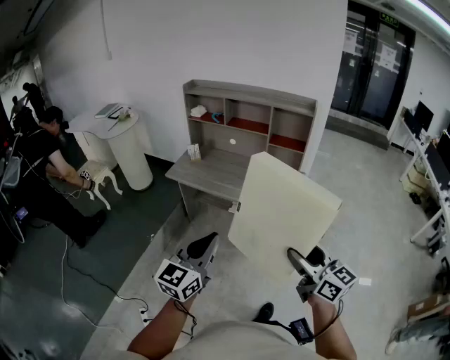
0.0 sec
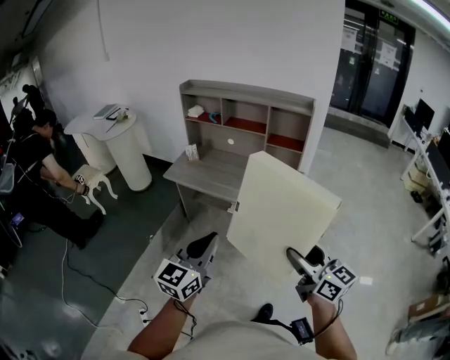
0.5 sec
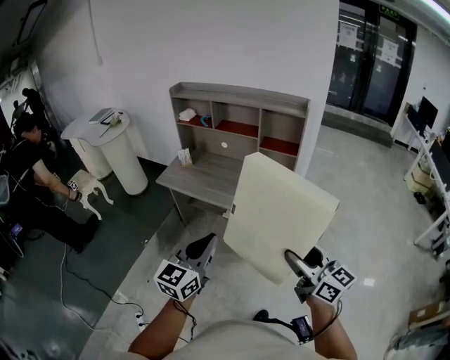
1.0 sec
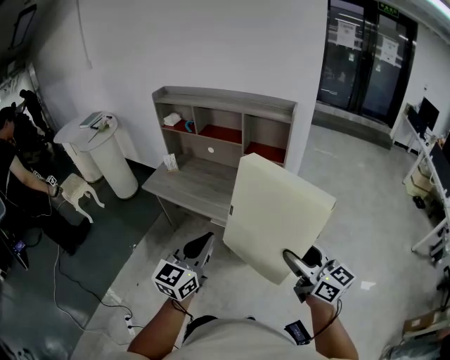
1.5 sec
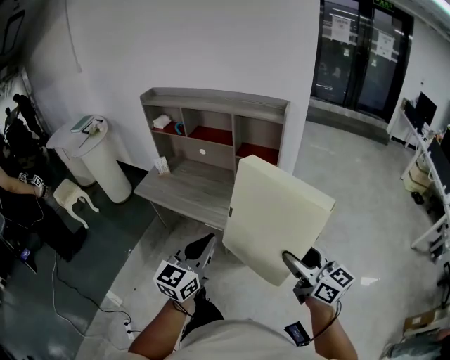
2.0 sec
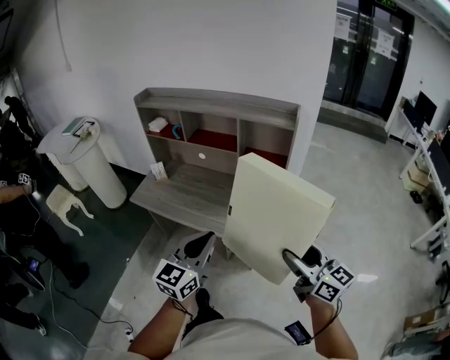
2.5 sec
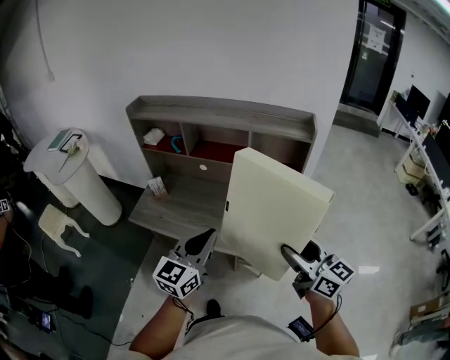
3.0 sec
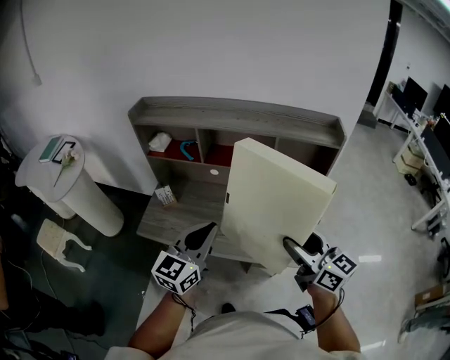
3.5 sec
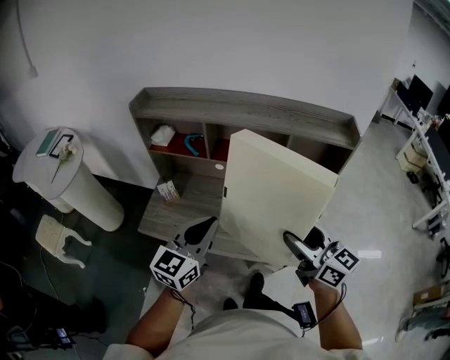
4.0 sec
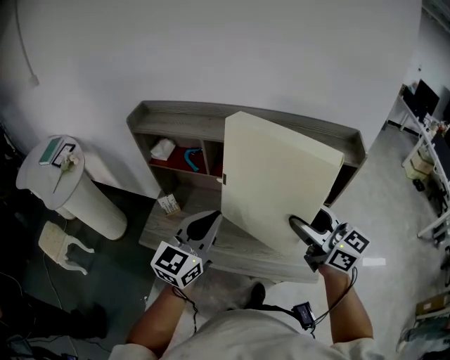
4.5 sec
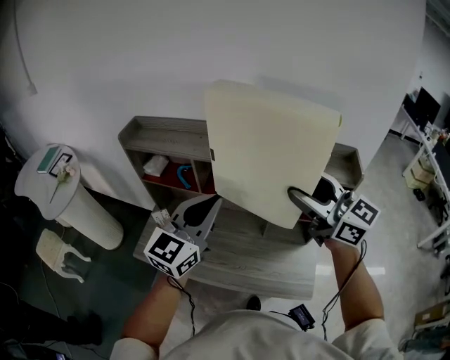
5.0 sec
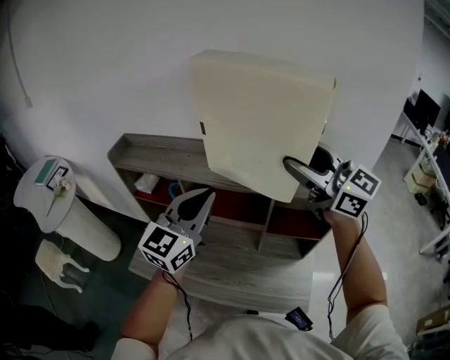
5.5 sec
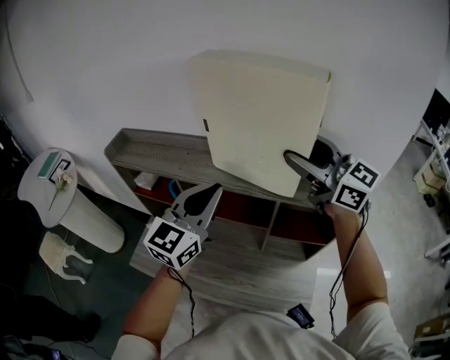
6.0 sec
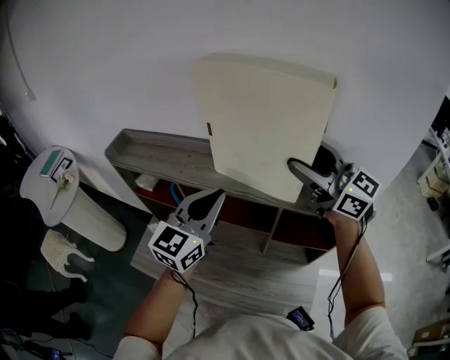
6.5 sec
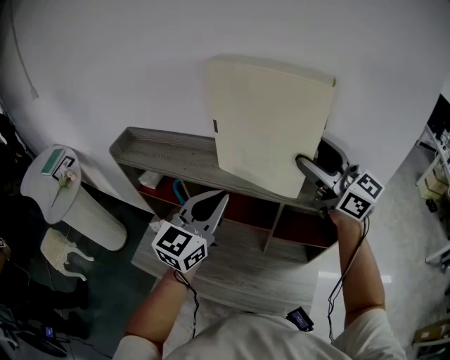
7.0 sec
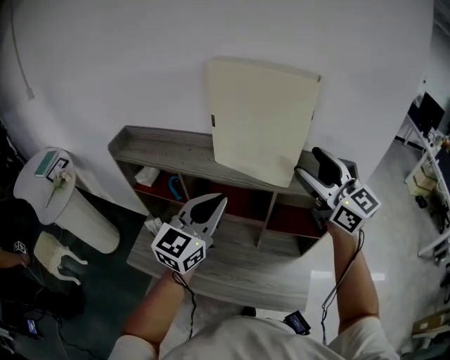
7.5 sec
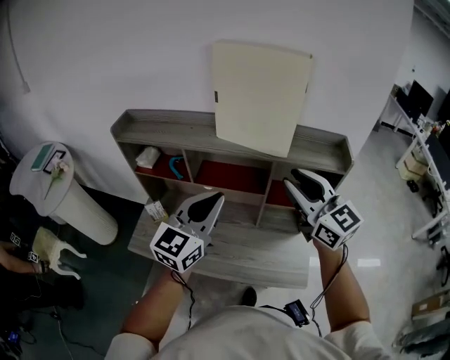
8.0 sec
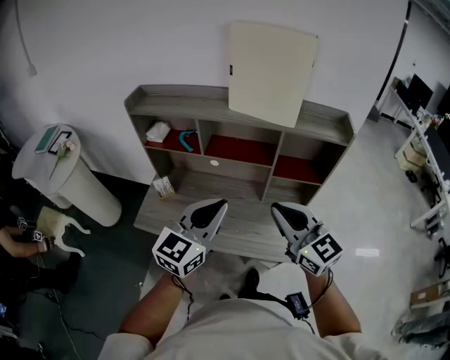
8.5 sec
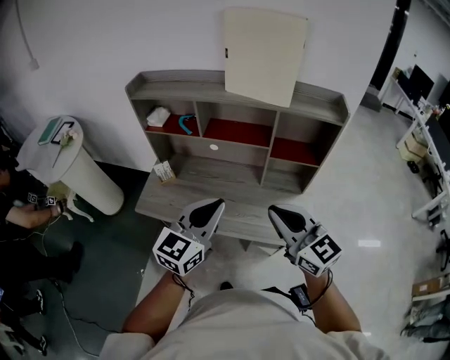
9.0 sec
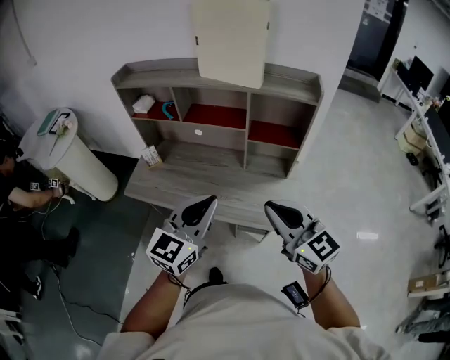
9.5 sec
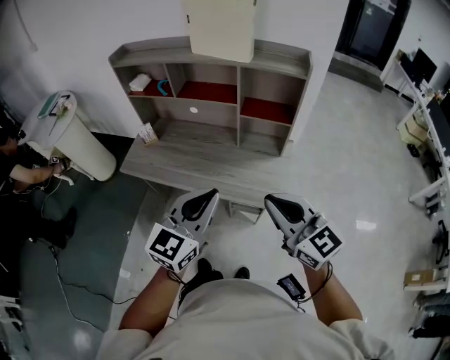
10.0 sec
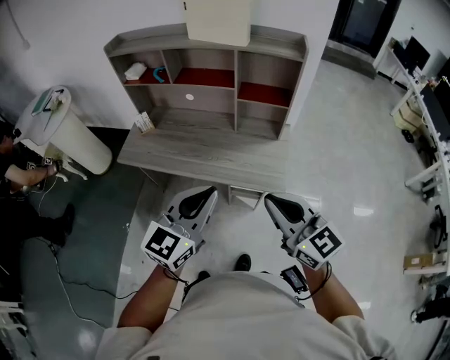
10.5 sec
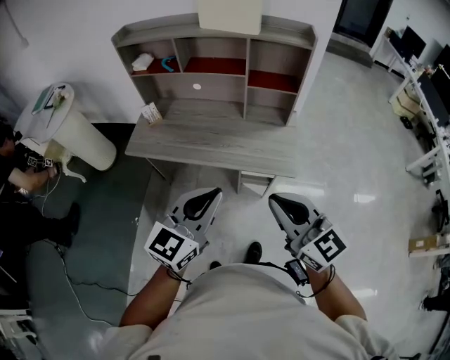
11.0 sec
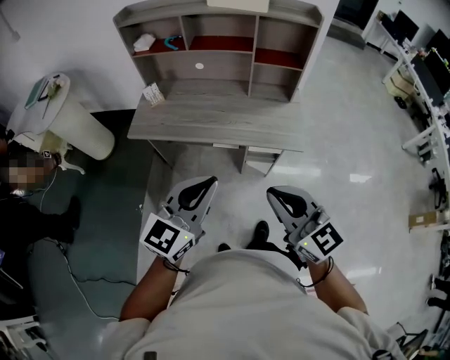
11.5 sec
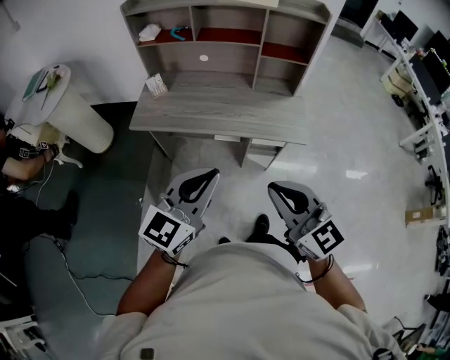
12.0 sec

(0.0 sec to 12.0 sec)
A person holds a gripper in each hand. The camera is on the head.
0.0 sec - 2.0 sec: Both grippers travel together to the right and forward, approximately 30 cm.
2.0 sec - 4.0 sec: The pair of grippers is taken forward and to the left, about 50 cm.
4.0 sec - 6.0 sec: The right gripper moves forward and upward, some 40 cm, and turns by roughly 30 degrees. The left gripper moves forward, to the right and upward, approximately 30 cm.
6.0 sec - 8.0 sec: The right gripper goes some 20 cm backward and downward, and closes its fingers, while the left gripper travels backward by some 15 cm.
8.0 sec - 10.0 sec: The two grippers go about 35 cm backward. The right gripper closes its fingers.
10.0 sec - 12.0 sec: Both grippers move to the left and backward, roughly 30 cm.

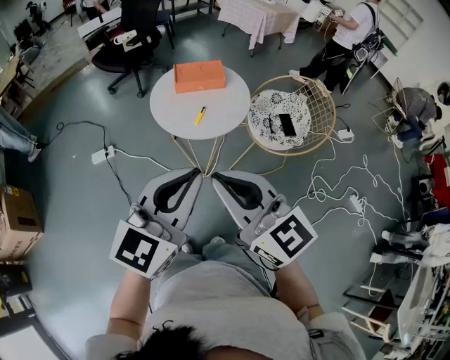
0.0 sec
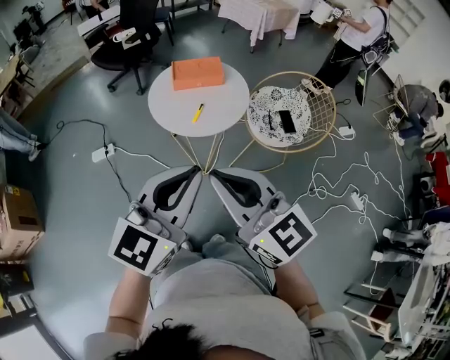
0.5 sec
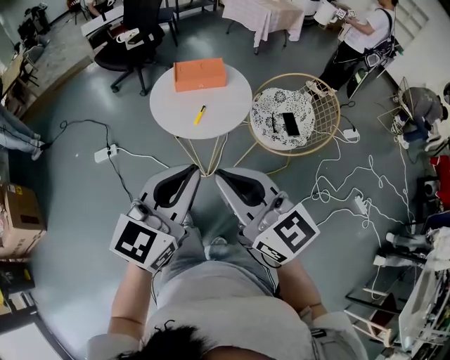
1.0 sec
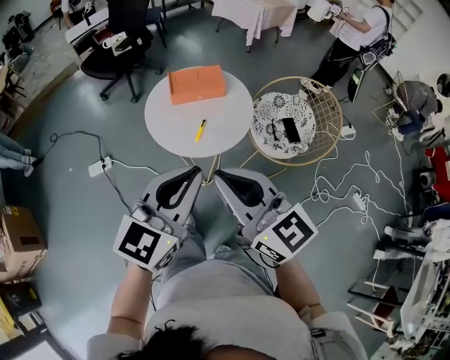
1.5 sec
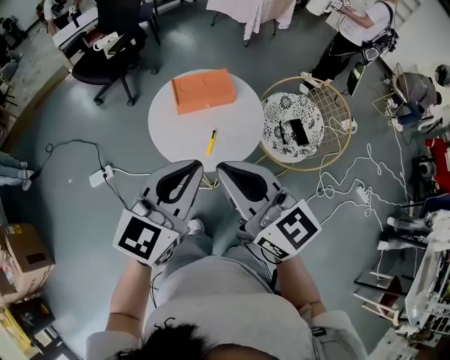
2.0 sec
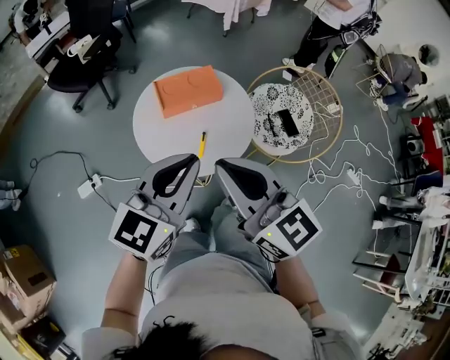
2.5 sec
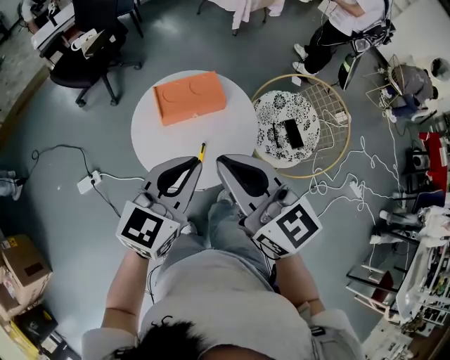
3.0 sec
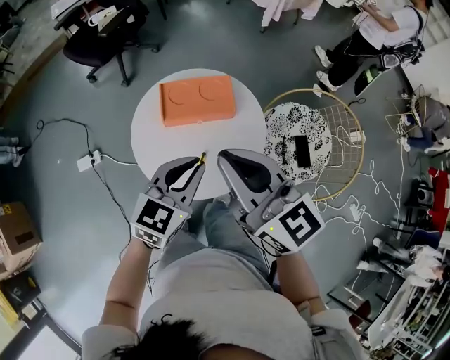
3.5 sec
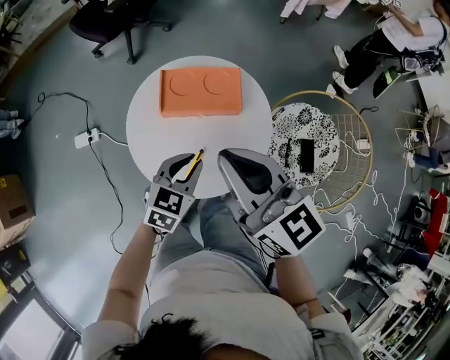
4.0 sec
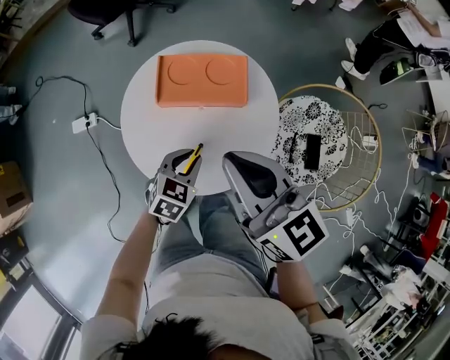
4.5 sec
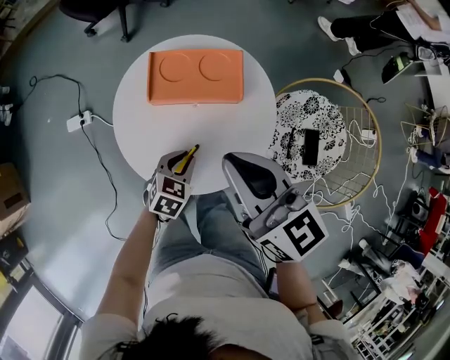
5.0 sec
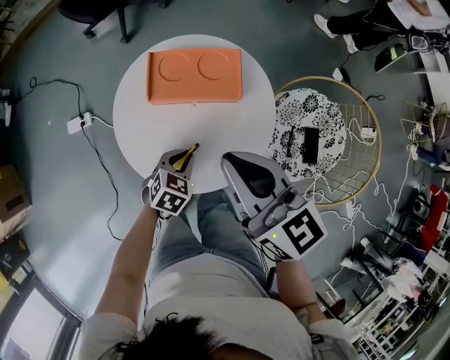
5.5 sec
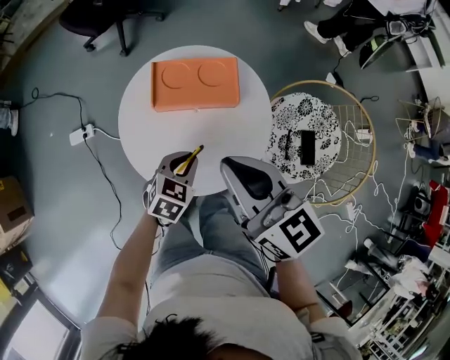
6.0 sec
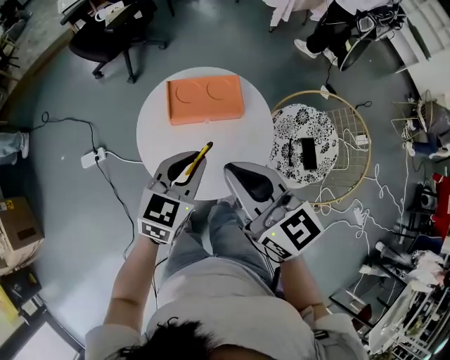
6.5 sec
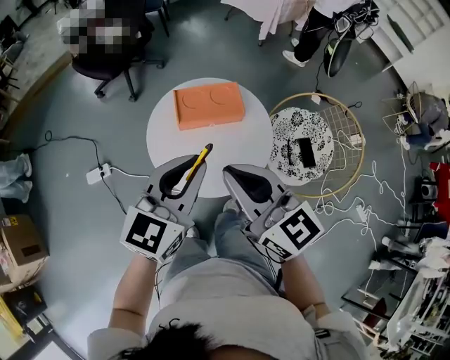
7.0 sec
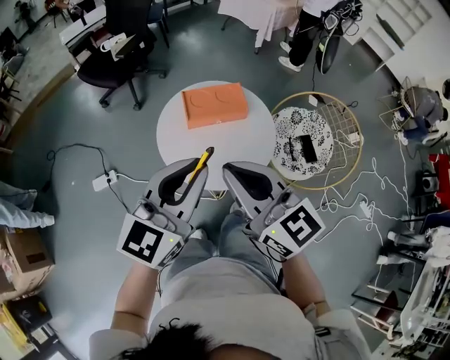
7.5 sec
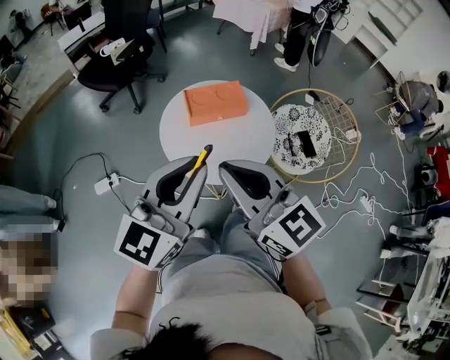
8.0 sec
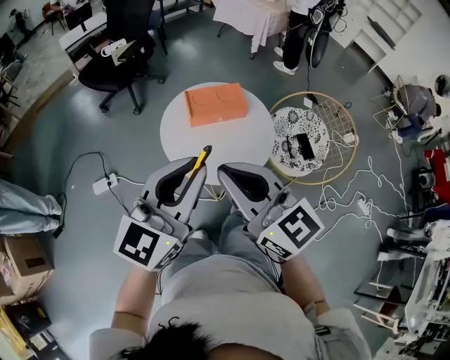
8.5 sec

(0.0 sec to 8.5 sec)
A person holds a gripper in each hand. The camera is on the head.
0.0 sec - 2.0 sec: Both grippers travel together forward, roughly 20 cm.
2.0 sec - 4.0 sec: The left gripper shifts about 30 cm downward and forward, and tips its fingers downward by approximately 30 degrees. The right gripper travels forward by some 20 cm.
4.0 sec - 6.5 sec: The left gripper goes approximately 10 cm upward, while the right gripper changes place by about 5 cm.
6.5 sec - 8.5 sec: The right gripper shifts approximately 20 cm backward, to the left and upward. The left gripper travels upward, backward and to the left by approximately 25 cm, and turns by roughly 30 degrees.

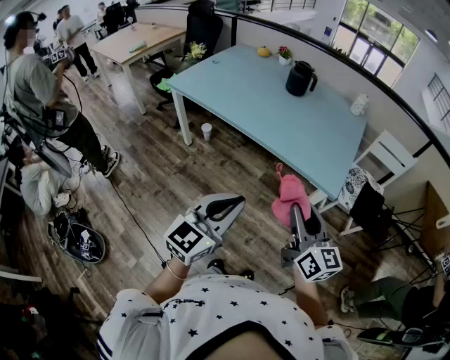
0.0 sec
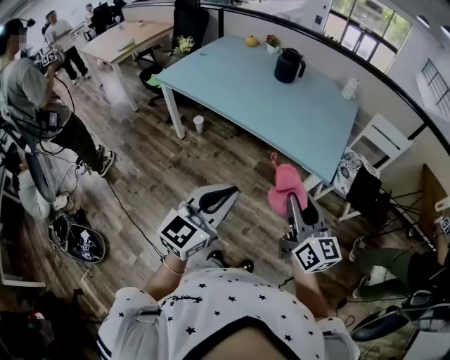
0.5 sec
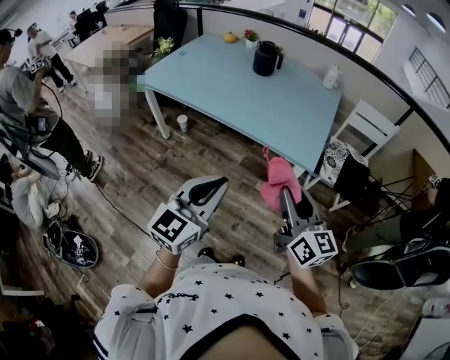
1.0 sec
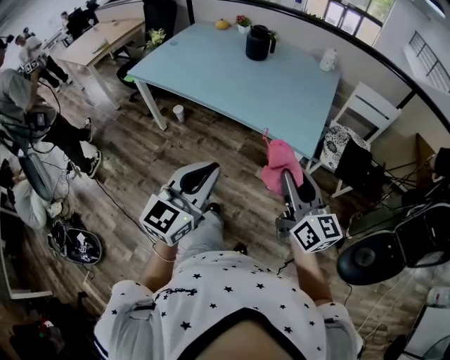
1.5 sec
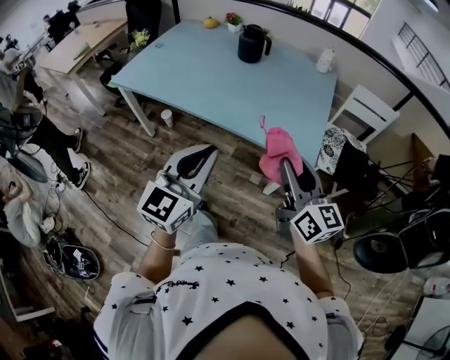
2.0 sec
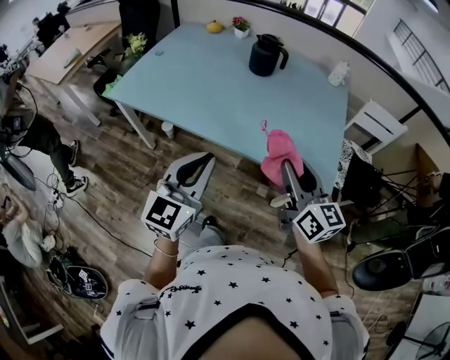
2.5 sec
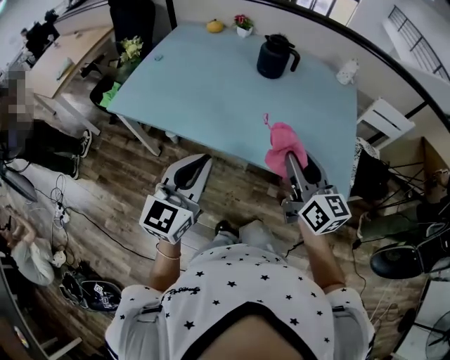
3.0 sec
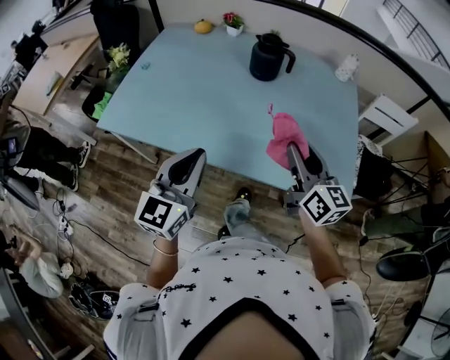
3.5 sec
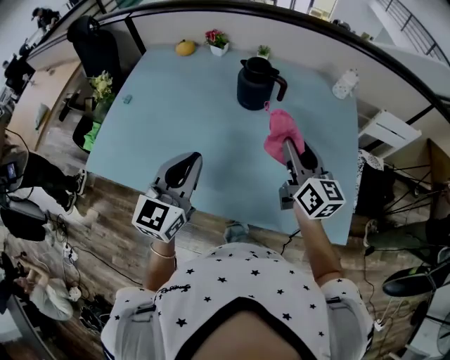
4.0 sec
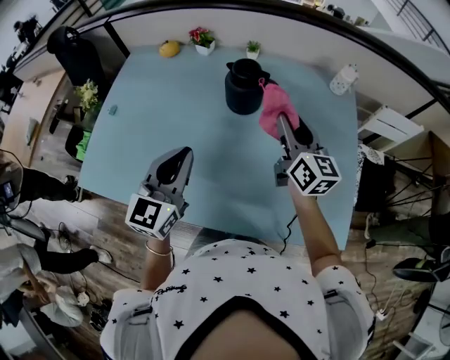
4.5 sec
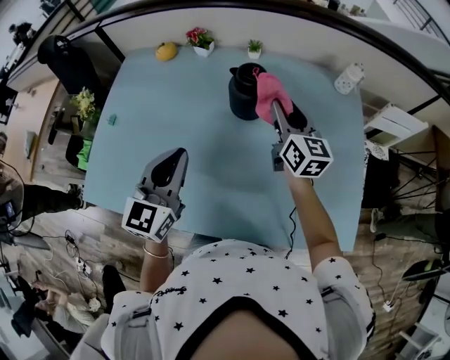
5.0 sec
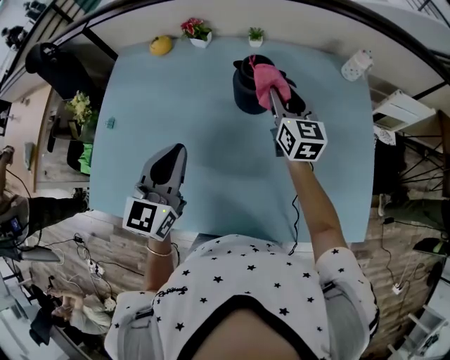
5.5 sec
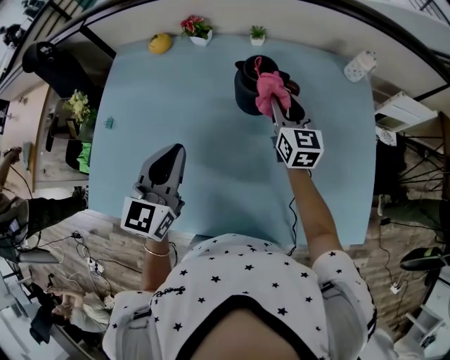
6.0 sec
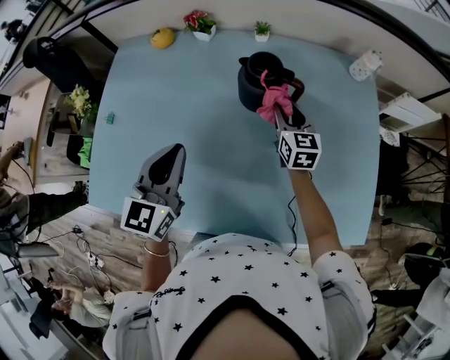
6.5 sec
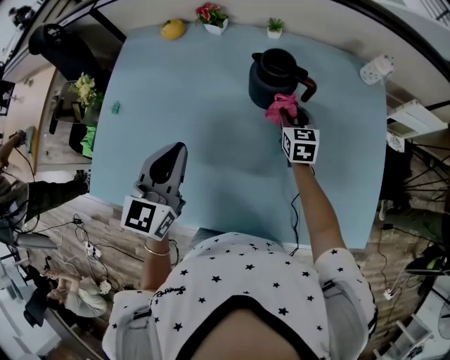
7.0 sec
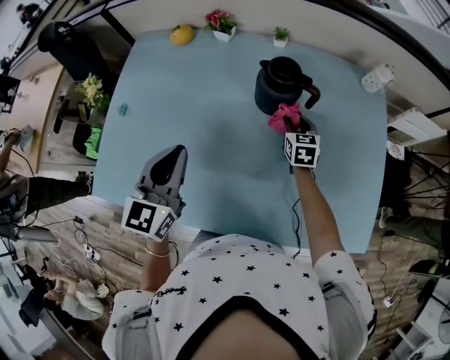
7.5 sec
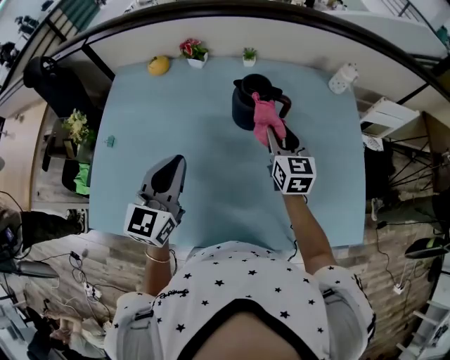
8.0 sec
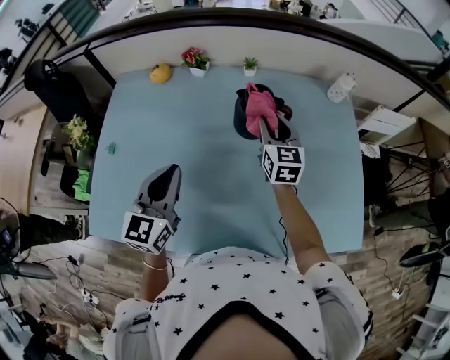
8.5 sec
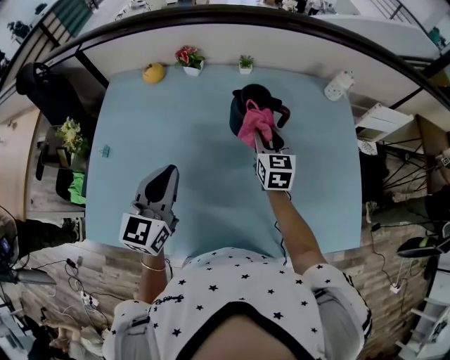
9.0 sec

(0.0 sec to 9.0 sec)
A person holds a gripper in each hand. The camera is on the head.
0.0 sec - 2.0 sec: The right gripper travels forward and to the right by some 10 cm; the left gripper moves forward, about 15 cm.
2.0 sec - 4.5 sec: The two grippers travel together, forward, roughly 50 cm.
4.5 sec - 7.0 sec: The left gripper shifts roughly 10 cm to the left and forward. The right gripper is displaced downward and forward by about 25 cm, and tips its fingers downward by roughly 30 degrees.
7.0 sec - 9.0 sec: The right gripper moves upward, about 10 cm.
